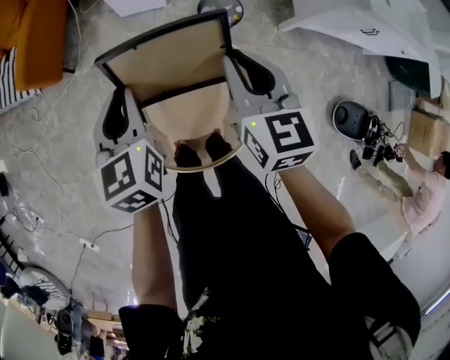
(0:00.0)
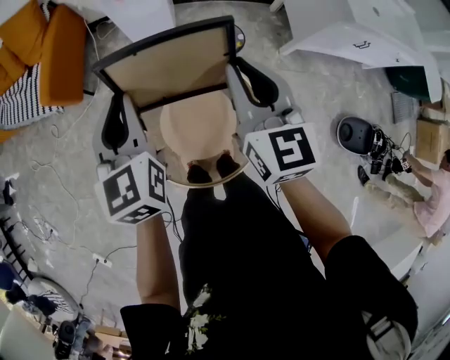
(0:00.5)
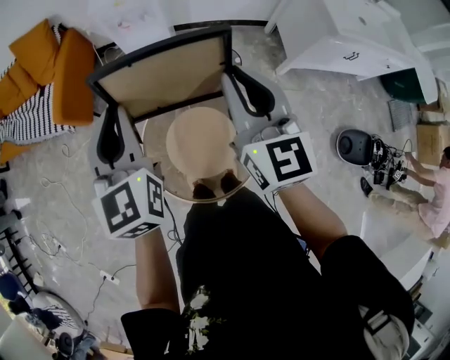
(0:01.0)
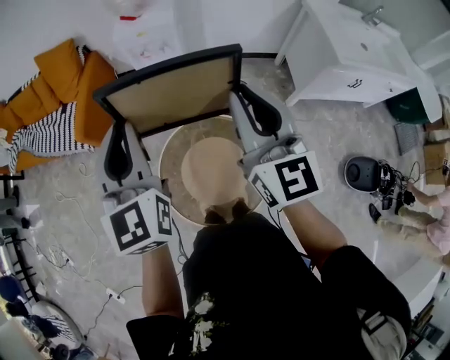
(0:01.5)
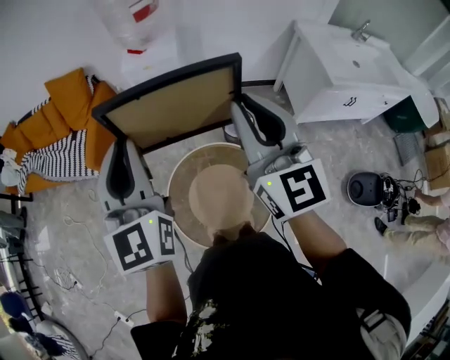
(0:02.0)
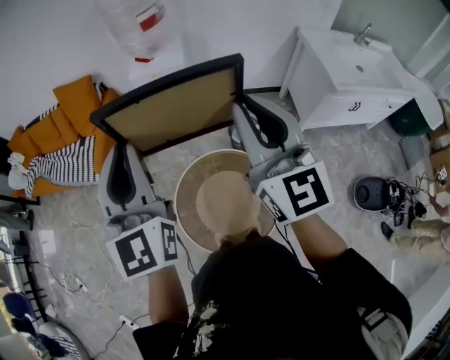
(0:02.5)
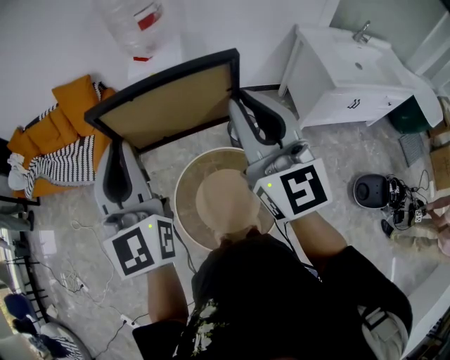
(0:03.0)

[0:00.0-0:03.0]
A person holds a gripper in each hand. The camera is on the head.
0:00.0 to 0:01.5: The grippers both shift upward by some 30 cm. The right gripper rotates roughly 30 degrees. Meanwhile the left gripper swivels about 30 degrees.
0:01.5 to 0:03.0: Both grippers travel together upward, approximately 10 cm.

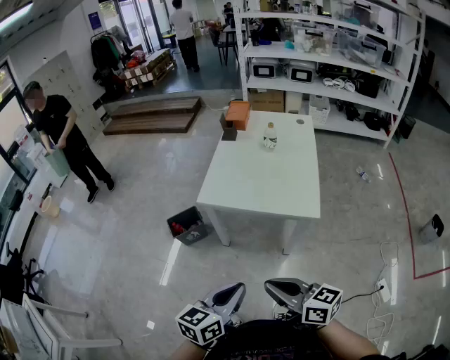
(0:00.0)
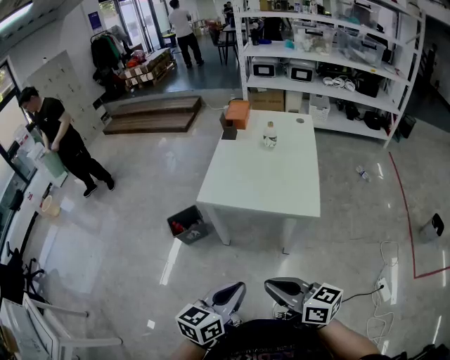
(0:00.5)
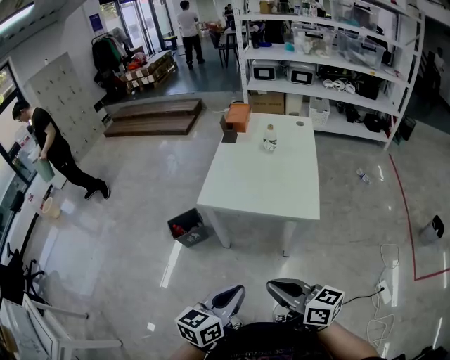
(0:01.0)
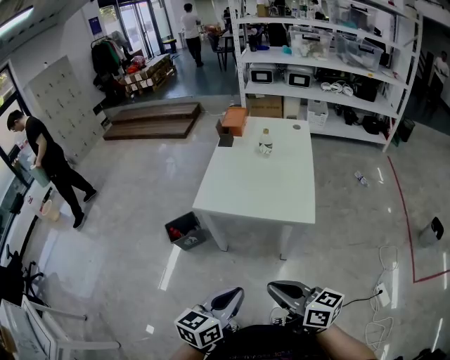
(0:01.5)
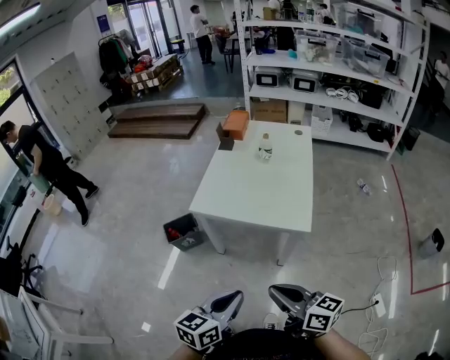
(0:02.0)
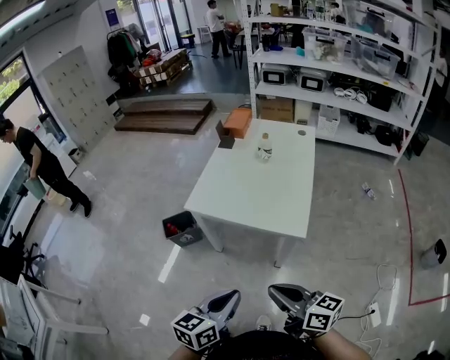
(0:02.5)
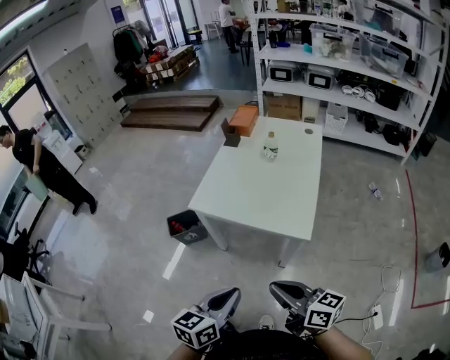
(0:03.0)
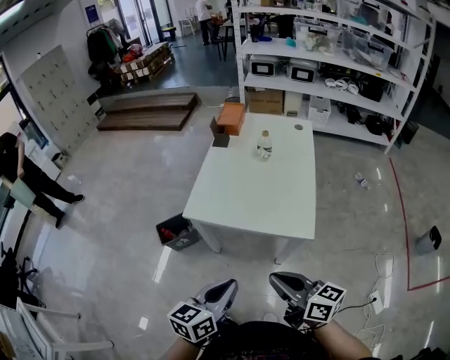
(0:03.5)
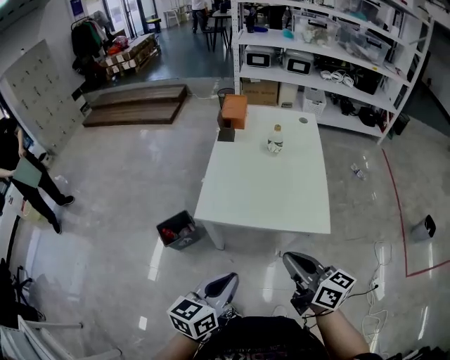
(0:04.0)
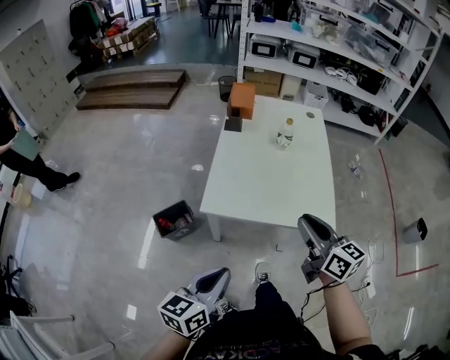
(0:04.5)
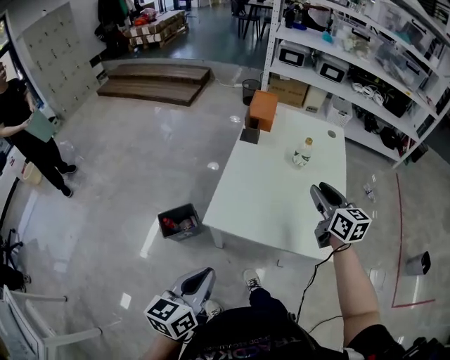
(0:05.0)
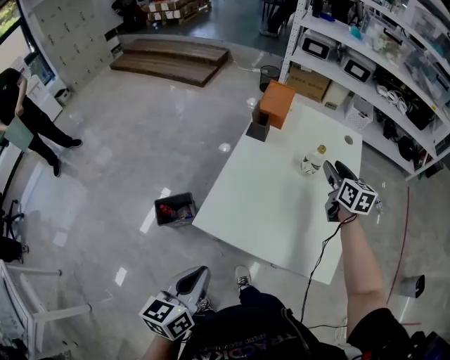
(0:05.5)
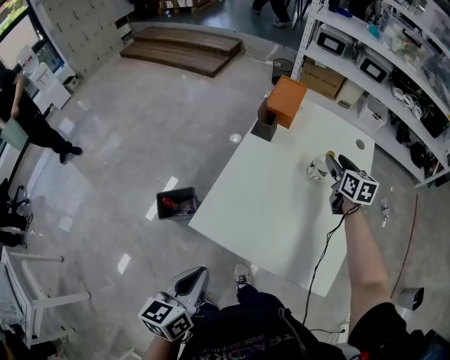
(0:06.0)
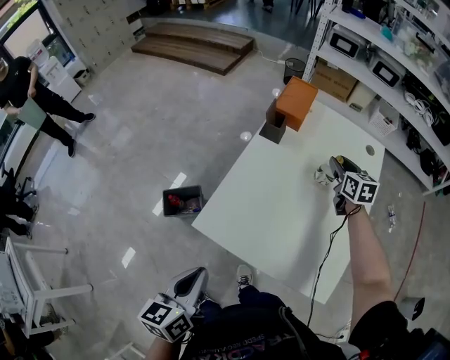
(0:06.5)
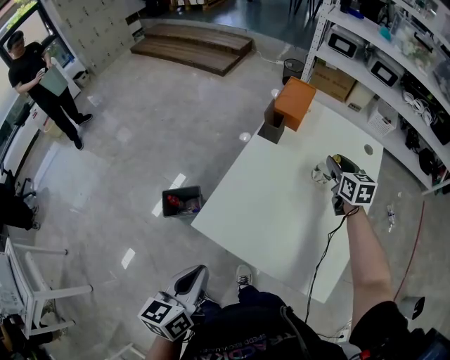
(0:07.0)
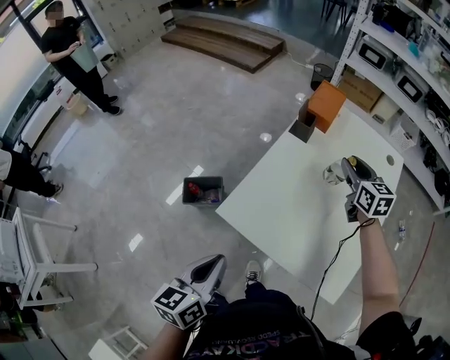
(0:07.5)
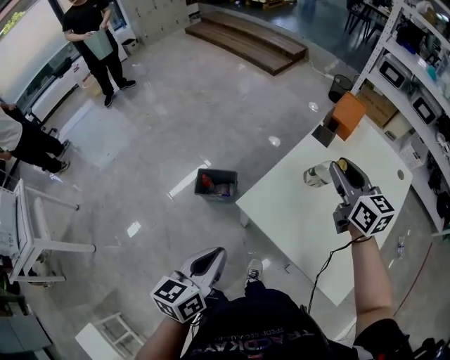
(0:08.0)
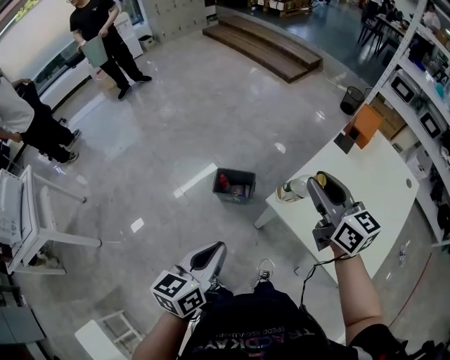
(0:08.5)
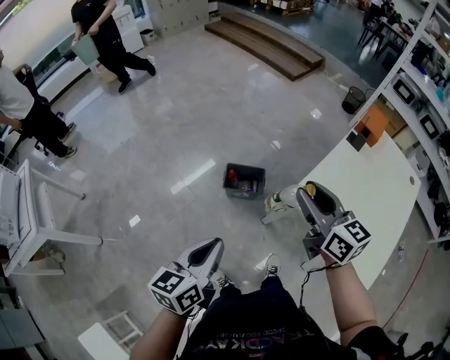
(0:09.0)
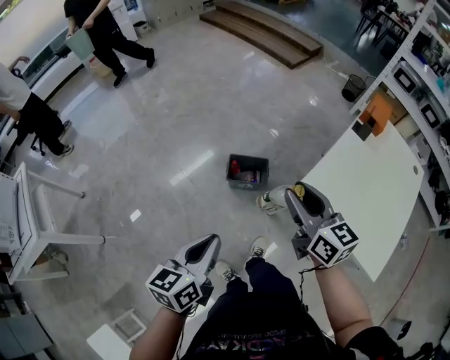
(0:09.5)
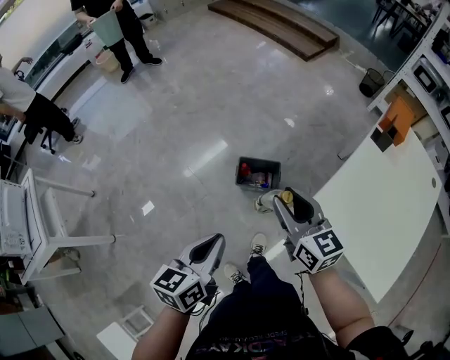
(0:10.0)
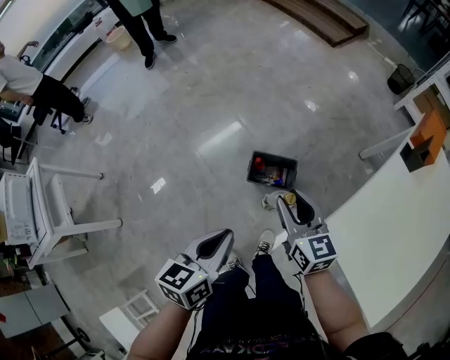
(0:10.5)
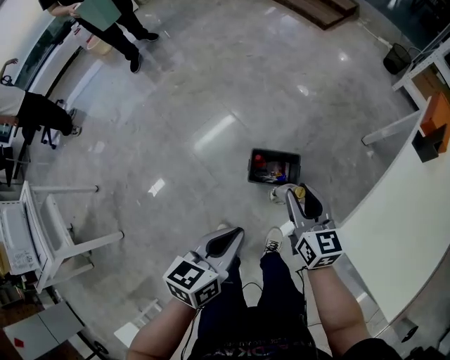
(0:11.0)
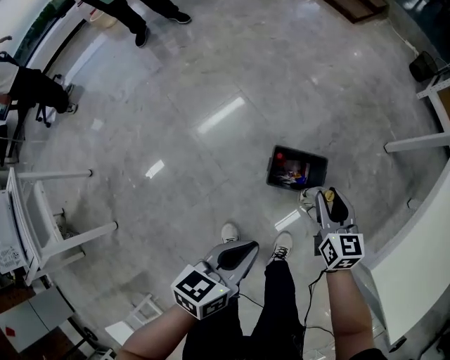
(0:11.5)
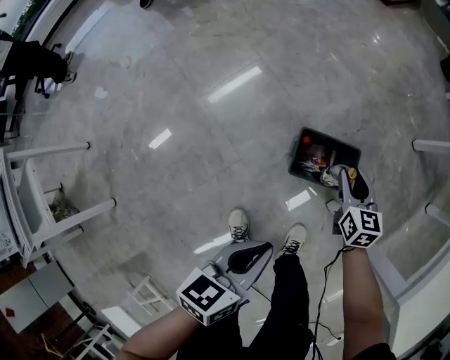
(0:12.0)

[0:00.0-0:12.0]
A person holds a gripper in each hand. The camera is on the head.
0:00.0 to 0:02.0: The grippers both shift to the right by some 5 cm.
0:02.0 to 0:04.0: The left gripper shifts about 20 cm forward and to the left; the right gripper heads forward, covering about 20 cm.
0:04.0 to 0:06.0: The left gripper goes roughly 20 cm forward, and turns by approximately 30 degrees. Meanwhile the right gripper is displaced forward by about 60 cm, swivels some 30 degrees, and opens its fingers.
0:06.0 to 0:08.0: The right gripper shifts approximately 25 cm to the left and upward, and rotates approximately 30 degrees. Meanwhile the left gripper is displaced to the left by about 5 cm.
0:08.0 to 0:10.0: The right gripper shifts about 40 cm to the left. Meanwhile the left gripper heads to the left, covering approximately 25 cm.
0:10.0 to 0:12.0: Both grippers move downward and forward, approximately 40 cm. The right gripper changes its angle by roughly 30 degrees.

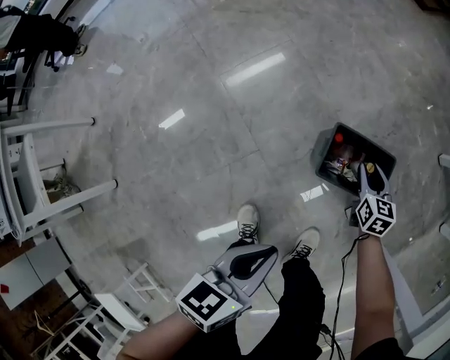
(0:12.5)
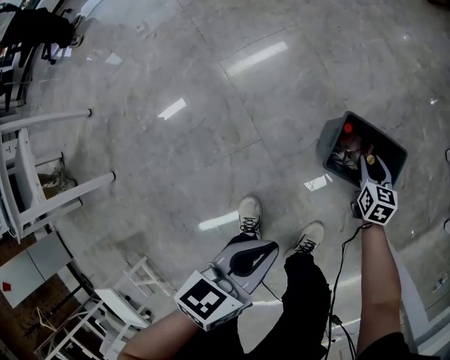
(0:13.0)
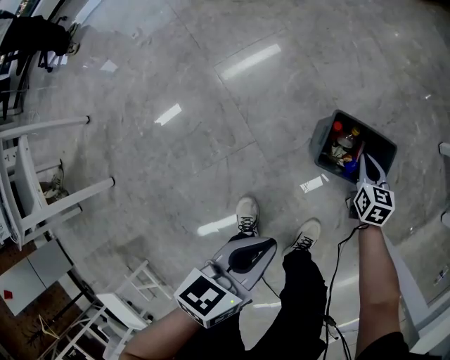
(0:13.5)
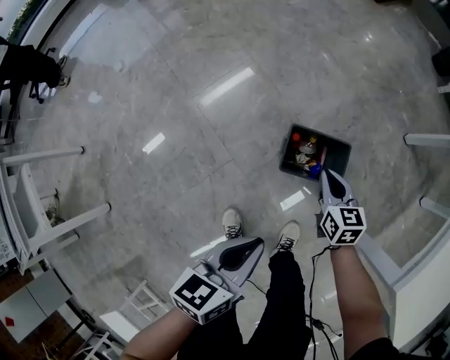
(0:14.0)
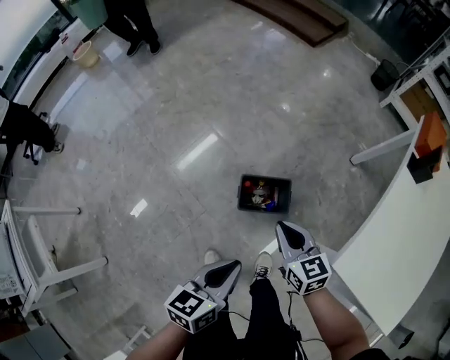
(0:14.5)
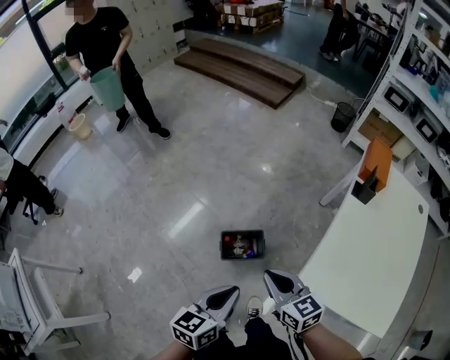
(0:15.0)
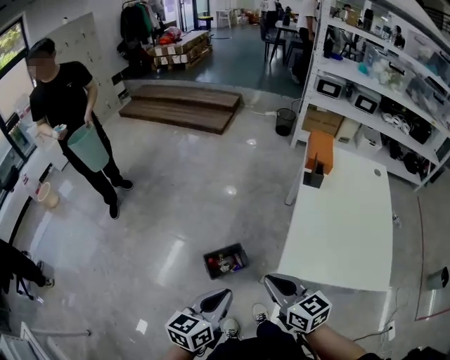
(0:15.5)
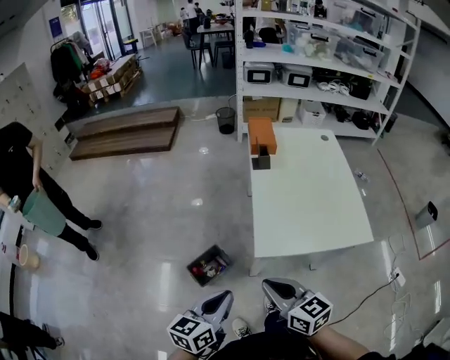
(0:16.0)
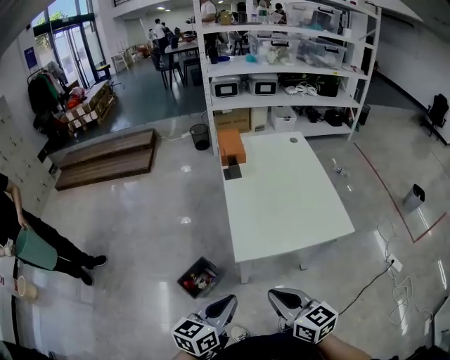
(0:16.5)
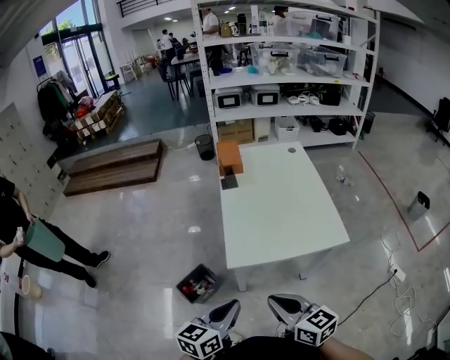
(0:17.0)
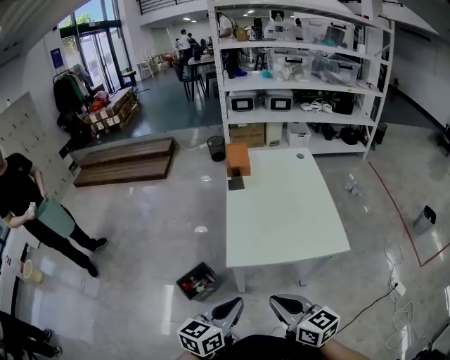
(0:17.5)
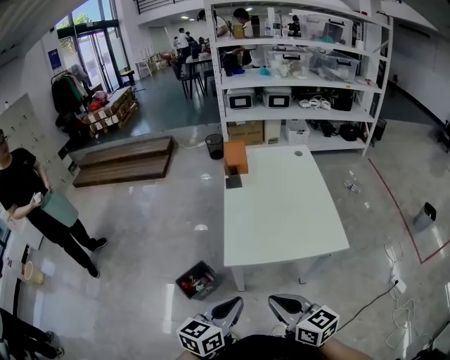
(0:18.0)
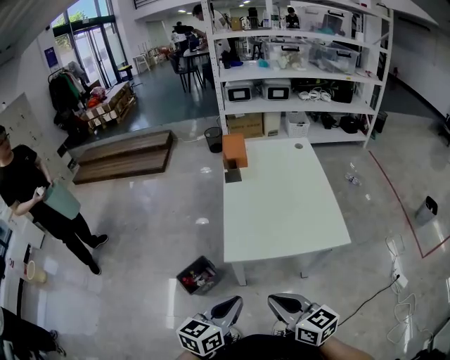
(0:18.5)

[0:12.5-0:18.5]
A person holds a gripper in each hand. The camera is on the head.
0:12.5 to 0:14.5: The left gripper shifts some 25 cm upward; the right gripper goes about 40 cm upward, and closes its fingers.
0:14.5 to 0:16.5: The left gripper shifts roughly 20 cm upward, and turns by about 50 degrees. The right gripper shifts by roughly 40 cm, and turns by approximately 50 degrees.
0:16.5 to 0:18.5: Both grippers travel together to the right, some 10 cm.

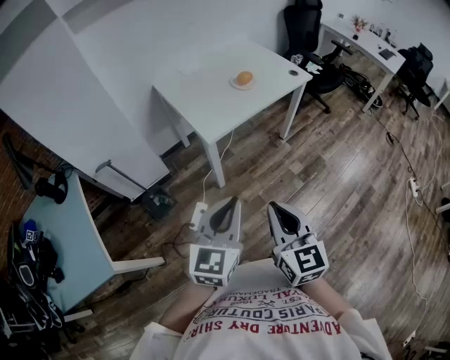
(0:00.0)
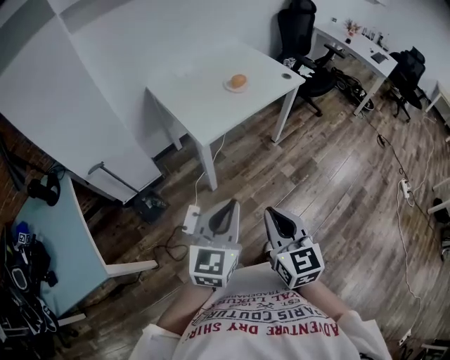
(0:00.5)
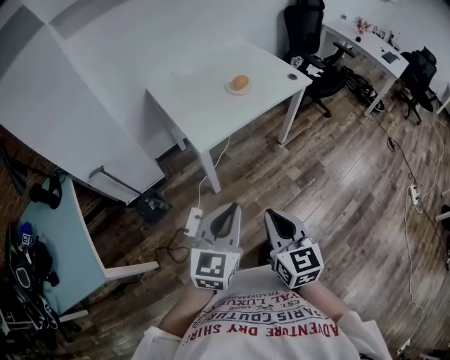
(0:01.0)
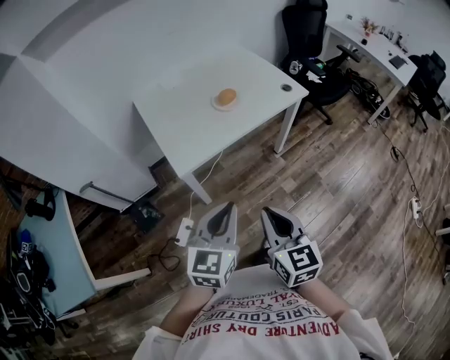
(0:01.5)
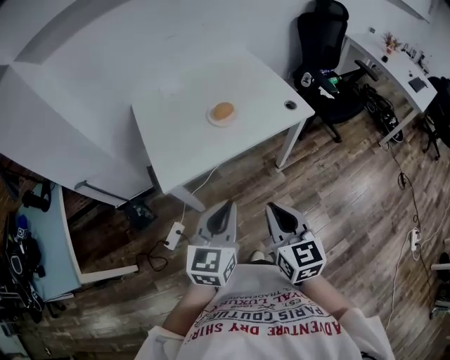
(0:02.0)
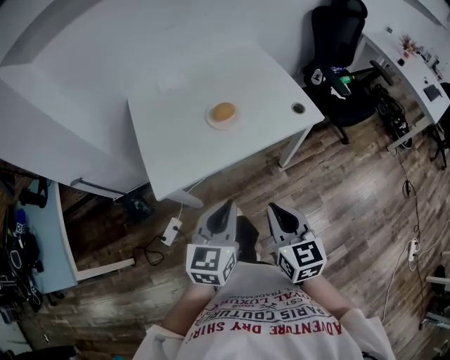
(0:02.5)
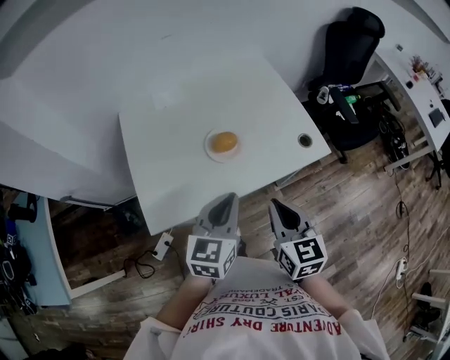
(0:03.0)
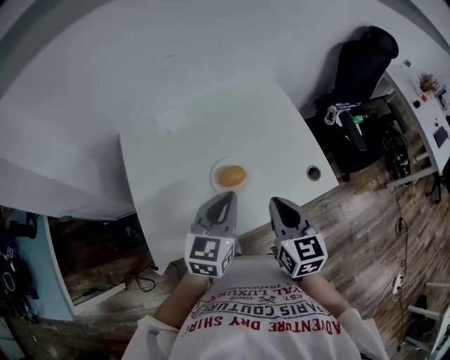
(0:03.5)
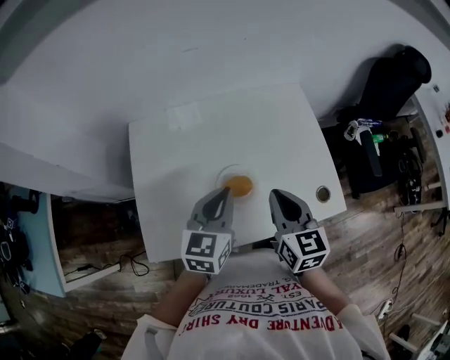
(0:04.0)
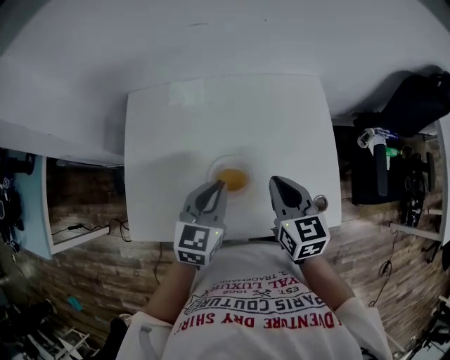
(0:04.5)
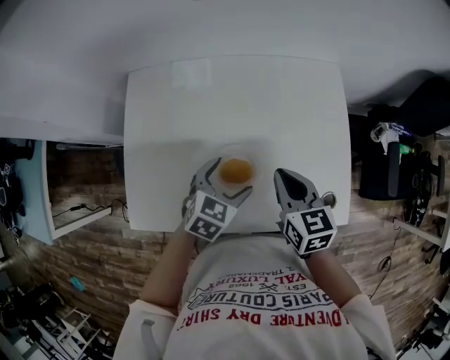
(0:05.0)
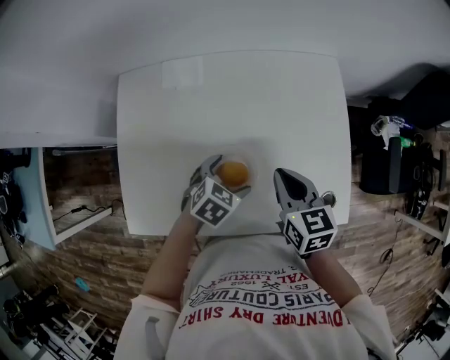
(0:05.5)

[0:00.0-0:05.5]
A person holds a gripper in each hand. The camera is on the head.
0:00.0 to 0:02.0: The two grippers go approximately 35 cm forward and to the right.
0:02.0 to 0:03.5: Both grippers move forward, some 35 cm.
0:03.5 to 0:05.5: The left gripper heads downward and forward, covering some 25 cm, angles its fingers downward, by roughly 40 degrees, and opens up, while the right gripper moves forward and downward, about 20 cm, and rotates roughly 30 degrees.
